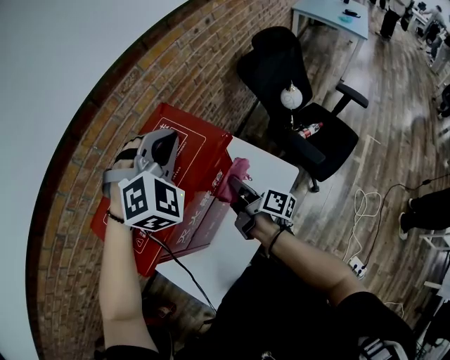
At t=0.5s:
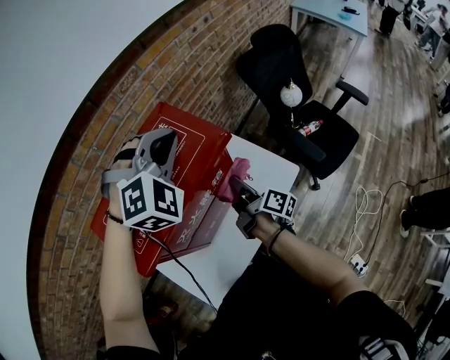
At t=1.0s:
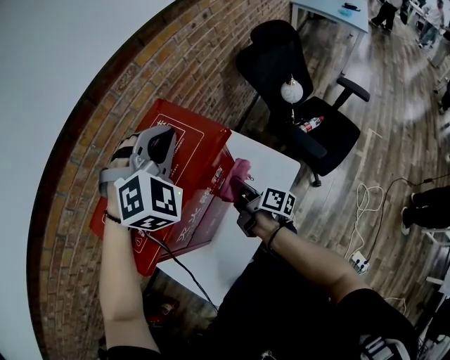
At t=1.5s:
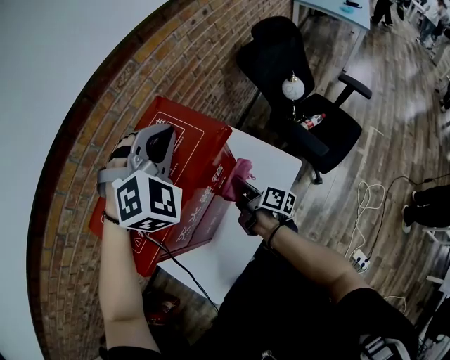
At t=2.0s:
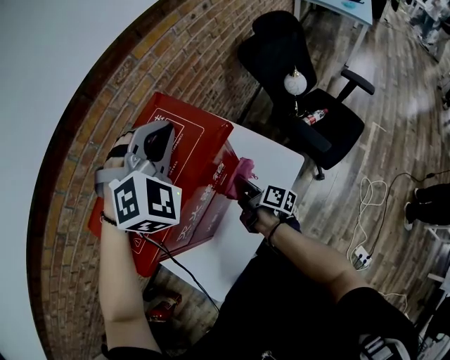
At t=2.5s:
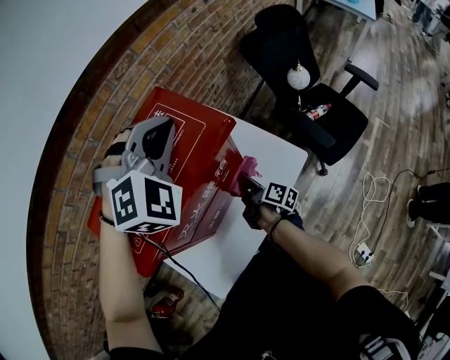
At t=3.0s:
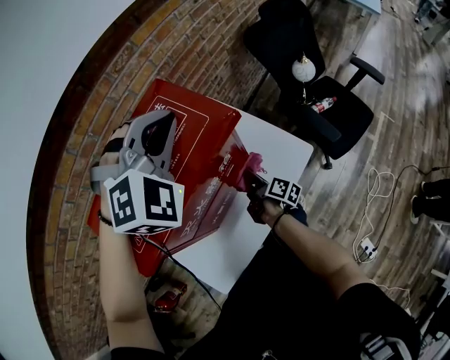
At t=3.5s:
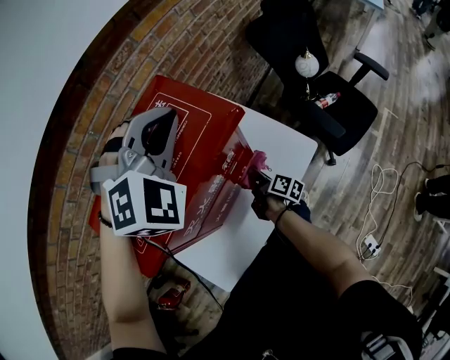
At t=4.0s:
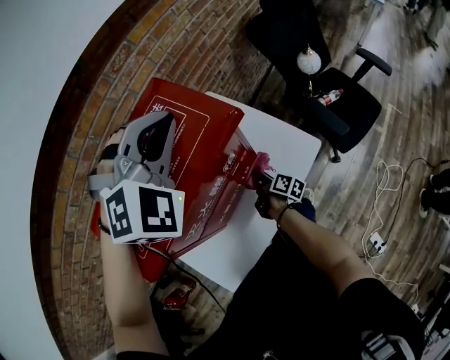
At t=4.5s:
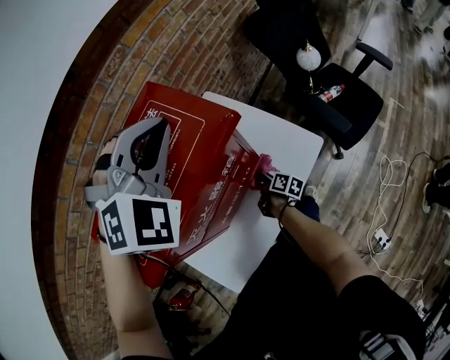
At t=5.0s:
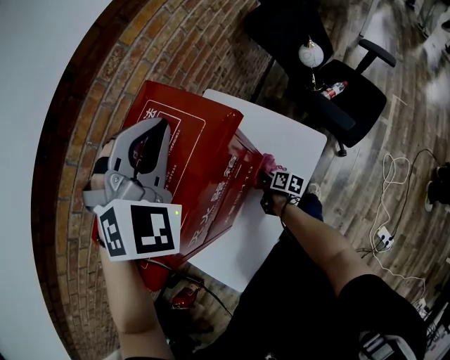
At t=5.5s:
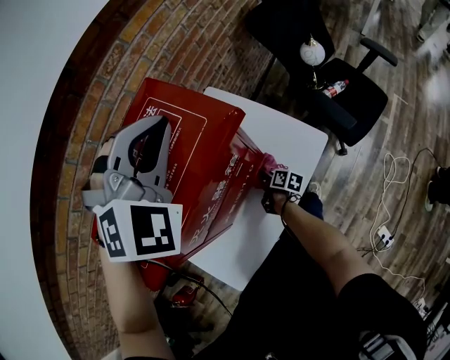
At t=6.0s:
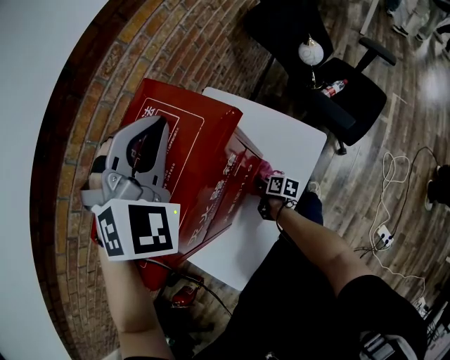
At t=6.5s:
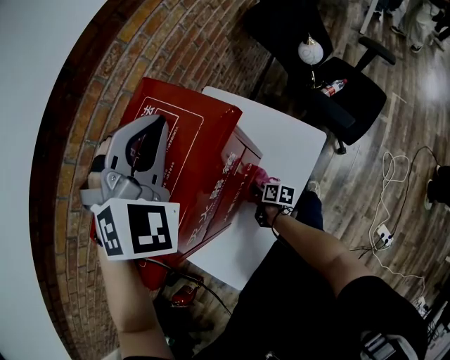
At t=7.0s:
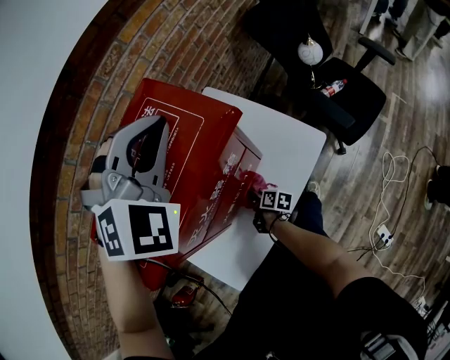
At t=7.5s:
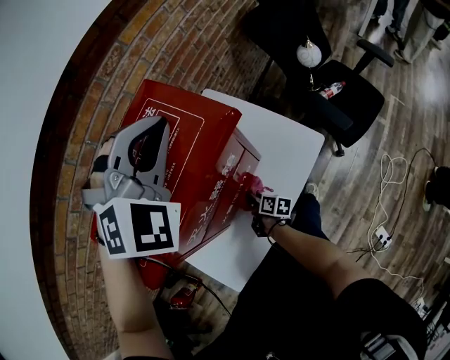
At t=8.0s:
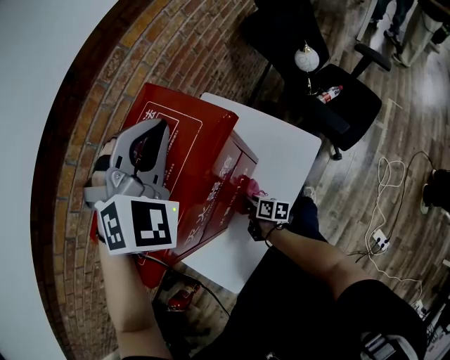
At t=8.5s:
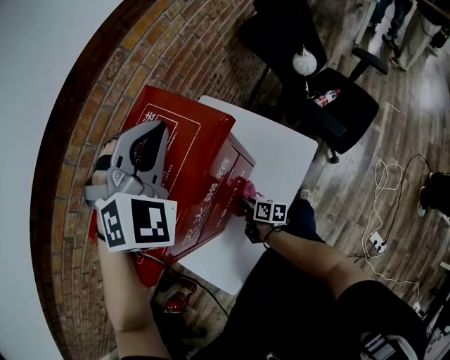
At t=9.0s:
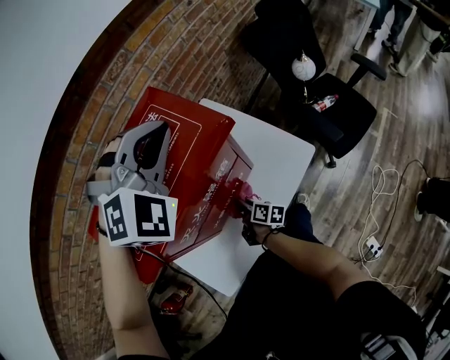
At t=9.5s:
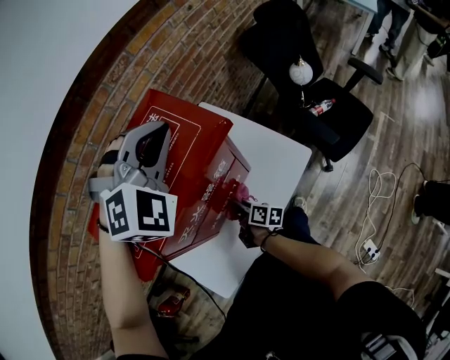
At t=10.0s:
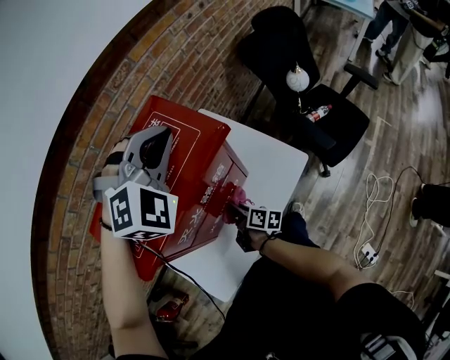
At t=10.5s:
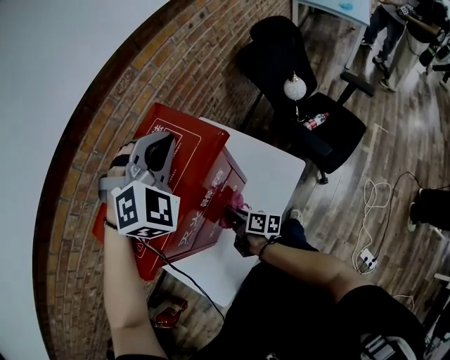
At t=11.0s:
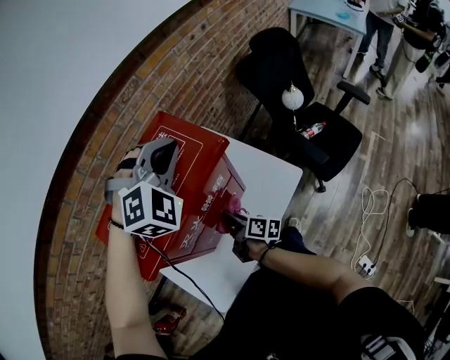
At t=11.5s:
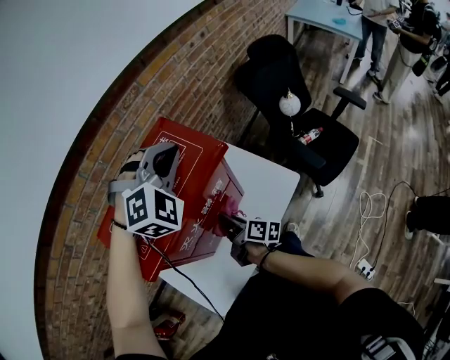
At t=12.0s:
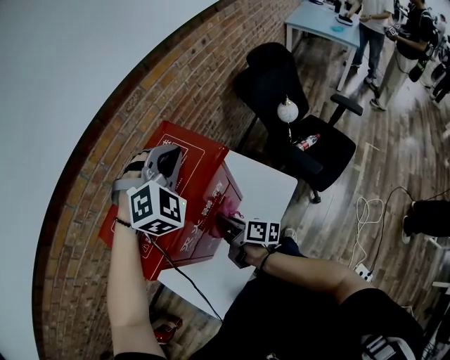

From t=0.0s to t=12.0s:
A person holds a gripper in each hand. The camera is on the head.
From t=0.0s to t=2.0s: The right gripper travels downward by some 10 cm.
From t=2.0s to t=4.0s: The right gripper heads downward, covering about 15 cm.
From t=4.0s to t=6.0s: The right gripper travels downward by approximately 10 cm.
From t=6.0s to t=8.0s: The right gripper is displaced to the left by approximately 5 cm.
From t=8.0s to t=10.0s: The right gripper heads upward, covering approximately 10 cm.
From t=10.0s to t=12.0s: The right gripper travels upward by some 15 cm.

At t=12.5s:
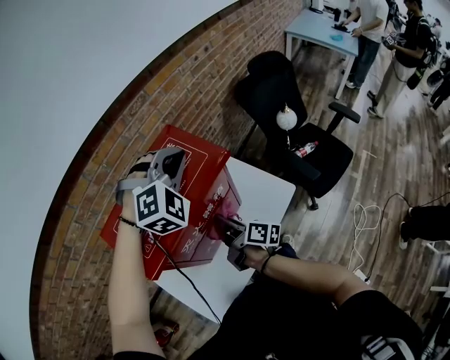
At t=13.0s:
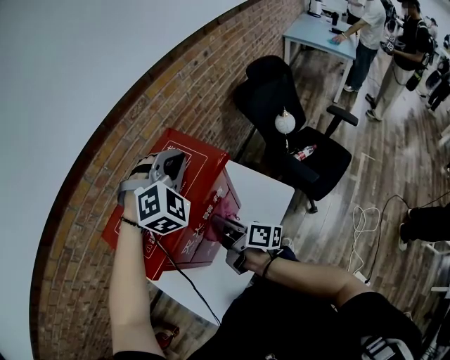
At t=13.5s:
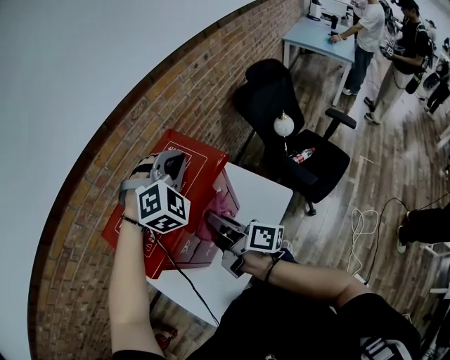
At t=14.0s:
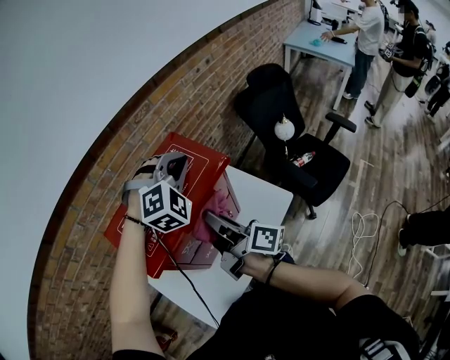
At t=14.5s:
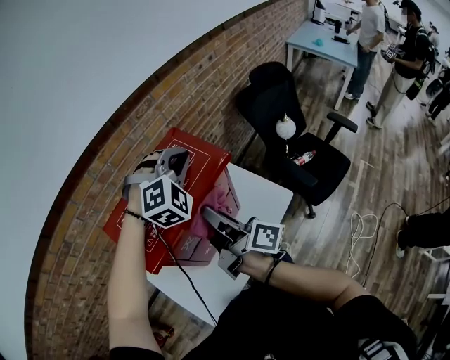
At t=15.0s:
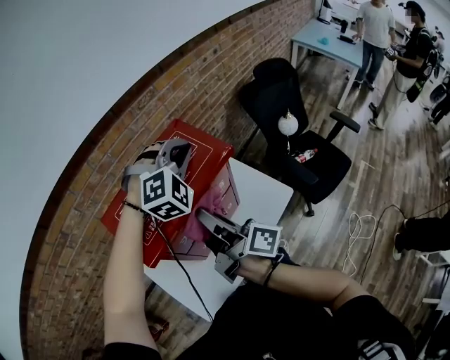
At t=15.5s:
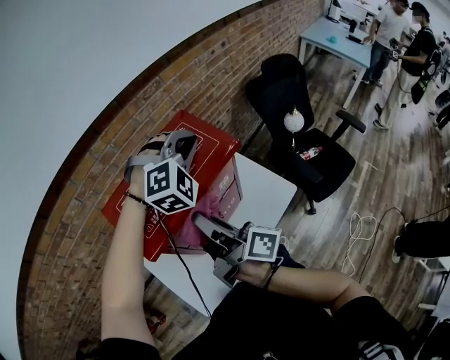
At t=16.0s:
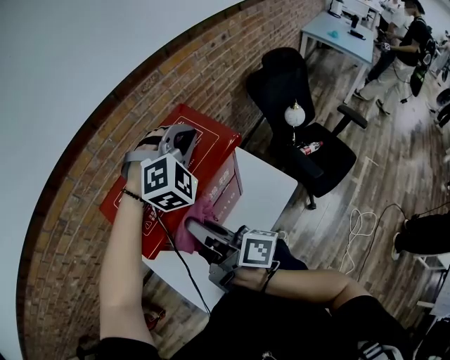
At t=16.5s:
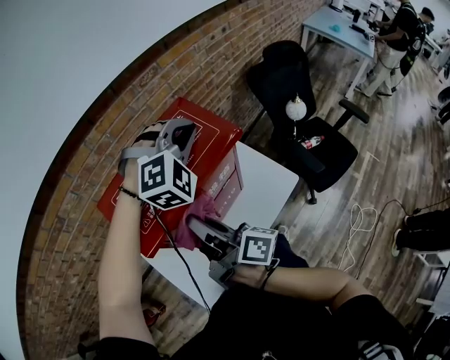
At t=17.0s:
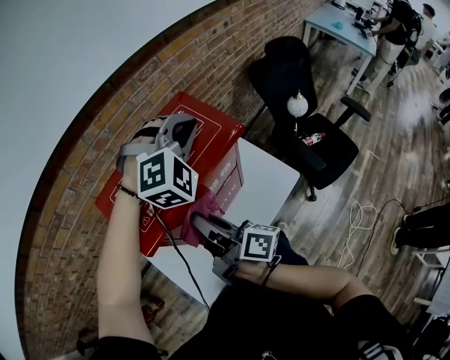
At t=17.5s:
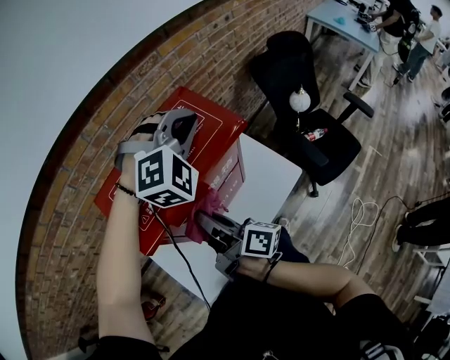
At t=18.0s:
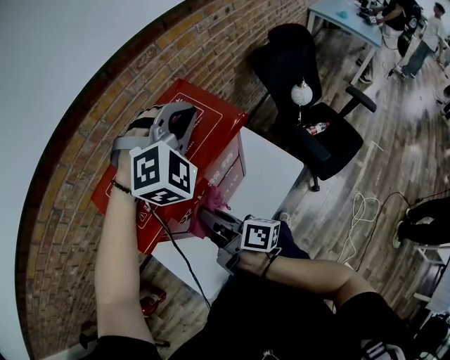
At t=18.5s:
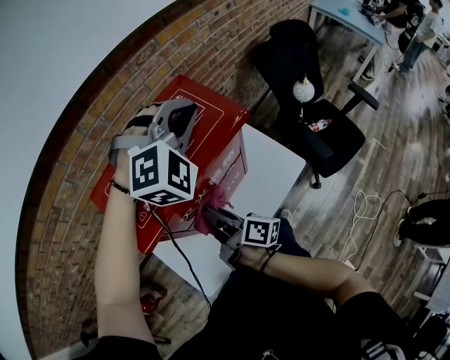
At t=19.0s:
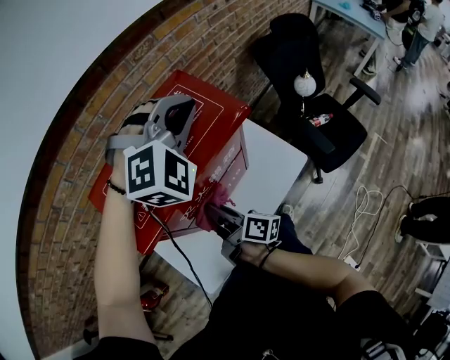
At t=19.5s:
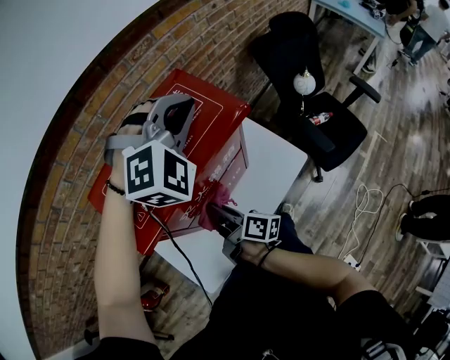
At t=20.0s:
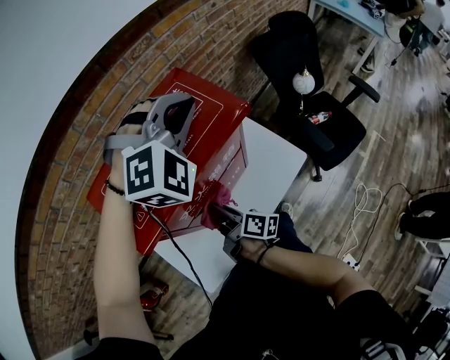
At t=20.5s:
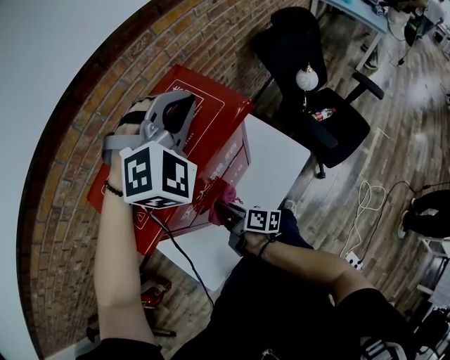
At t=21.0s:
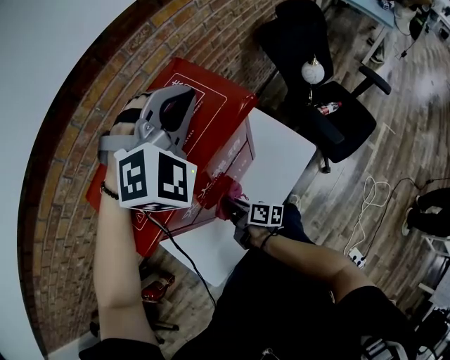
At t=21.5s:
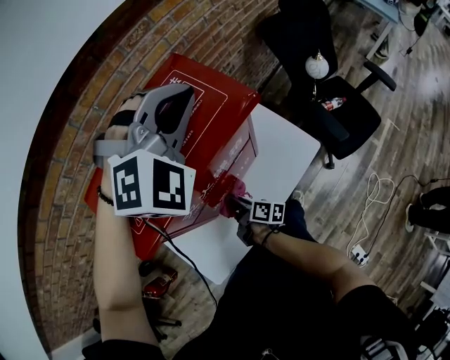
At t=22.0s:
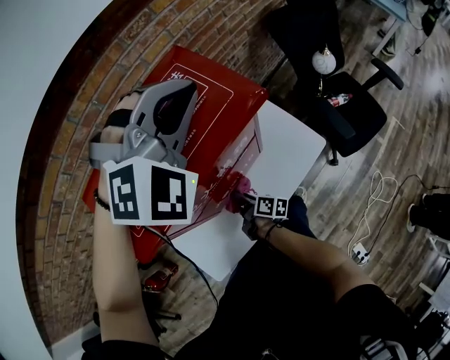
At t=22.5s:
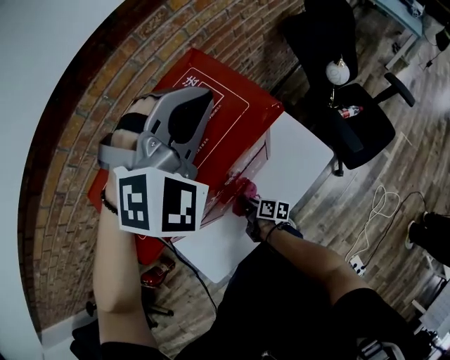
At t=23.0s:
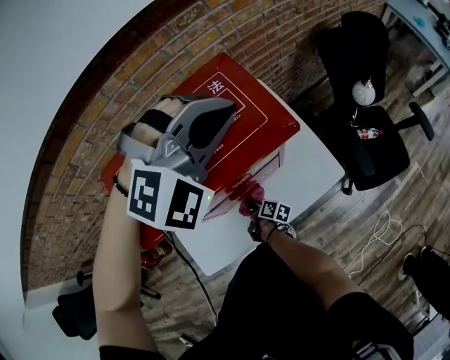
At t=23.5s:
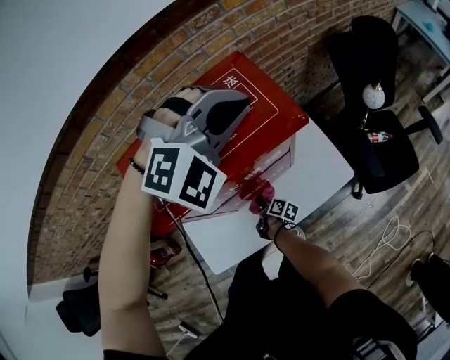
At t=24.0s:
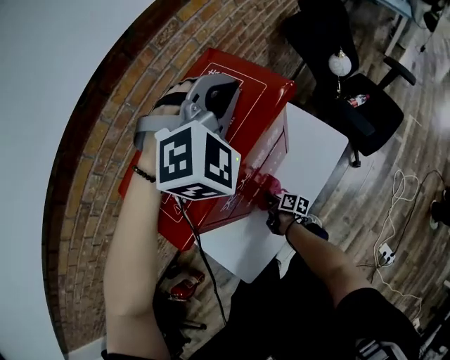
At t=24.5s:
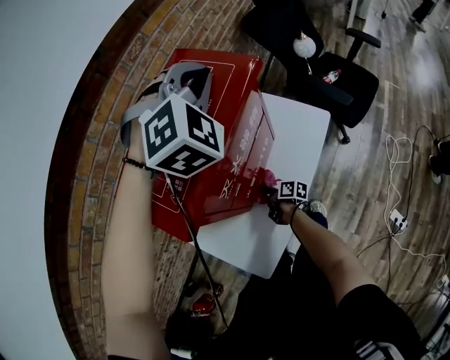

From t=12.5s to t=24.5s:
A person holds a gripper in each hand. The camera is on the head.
From t=12.5s to t=14.5s: The right gripper goes about 20 cm upward, and rotates about 20 degrees.
From t=14.5s to t=16.5s: The right gripper moves to the left, roughly 5 cm.
From t=16.5s to t=18.5s: The right gripper travels downward by roughly 15 cm.
From t=18.5s to t=20.5s: The right gripper goes some 10 cm downward.
From t=20.5s to t=22.5s: The right gripper moves downward, about 15 cm.
From t=22.5s to t=24.5s: The grippers move only a little.

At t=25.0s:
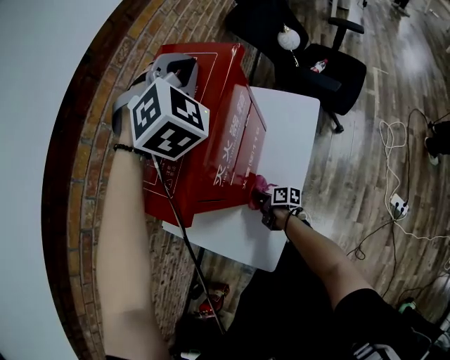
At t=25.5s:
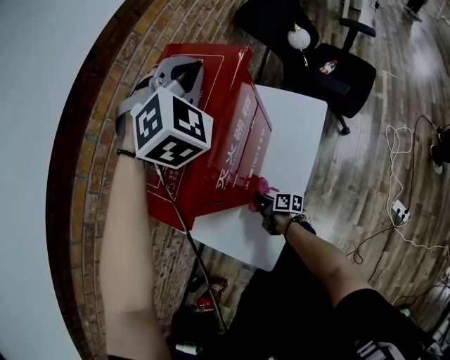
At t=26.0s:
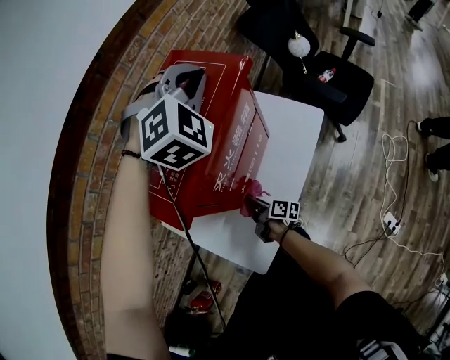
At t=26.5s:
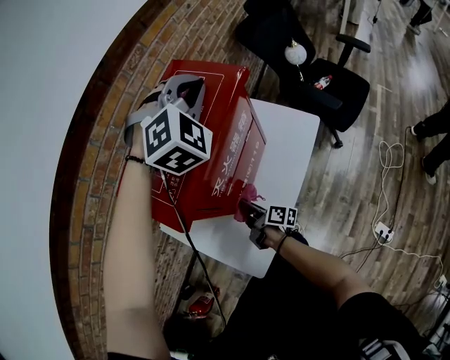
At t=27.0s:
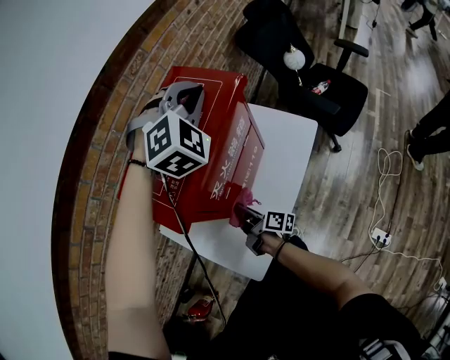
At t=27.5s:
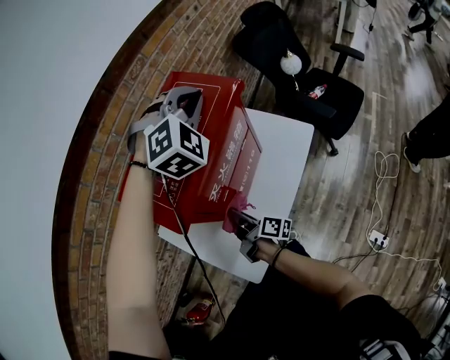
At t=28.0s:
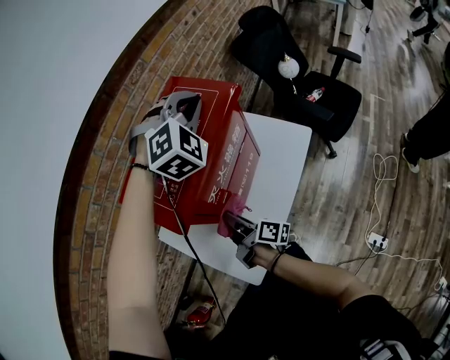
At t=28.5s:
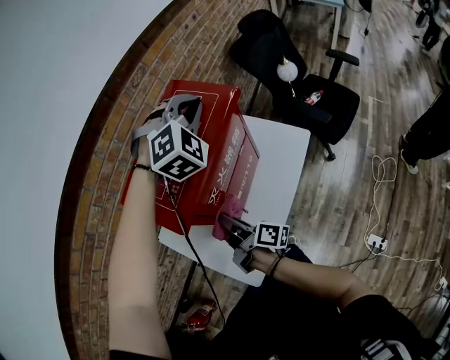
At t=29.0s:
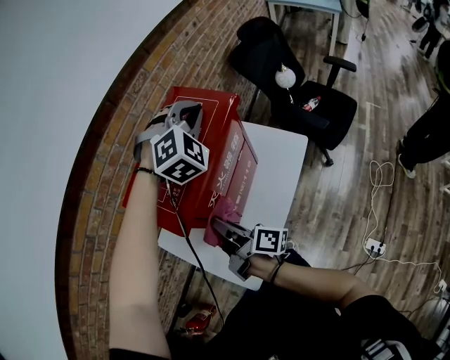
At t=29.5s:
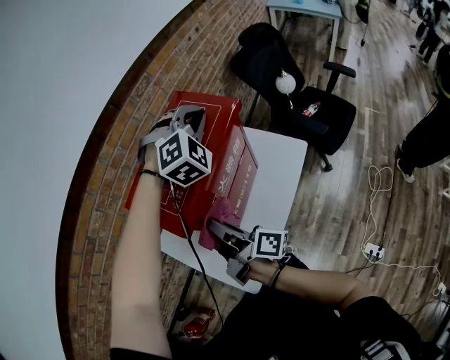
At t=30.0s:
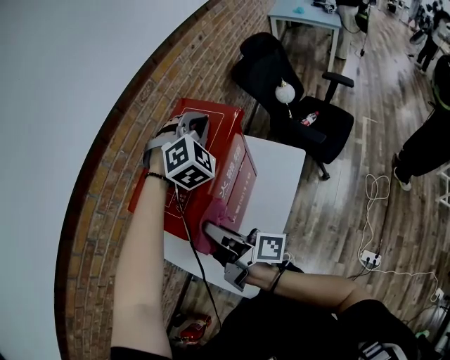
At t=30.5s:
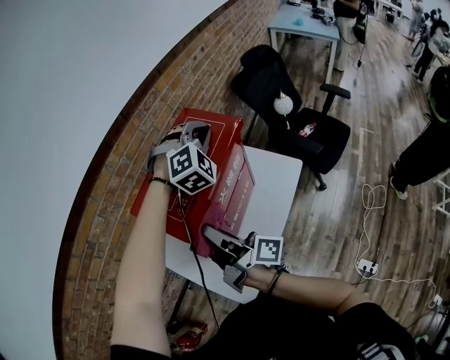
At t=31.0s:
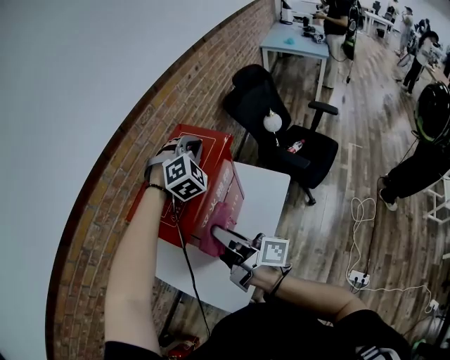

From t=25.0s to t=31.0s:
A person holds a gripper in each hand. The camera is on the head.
From t=25.0s to t=27.0s: The right gripper goes approximately 15 cm upward.
From t=27.0s to t=29.0s: The right gripper heads upward, covering some 20 cm.
From t=29.0s to t=31.0s: The right gripper is displaced upward and to the right by roughly 15 cm.
